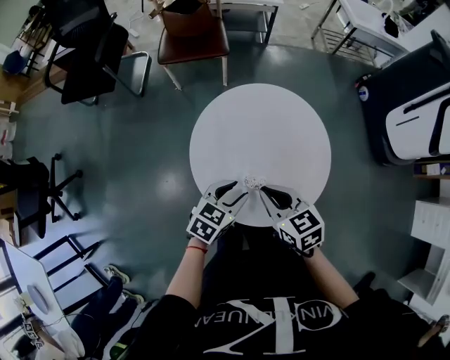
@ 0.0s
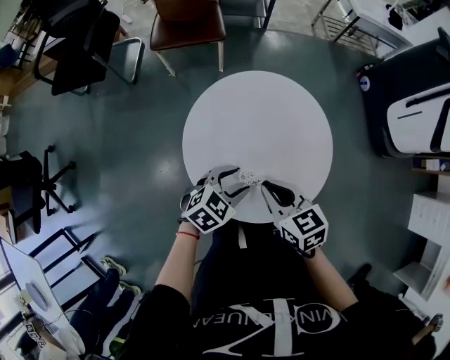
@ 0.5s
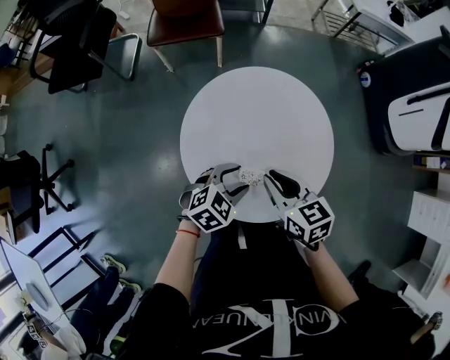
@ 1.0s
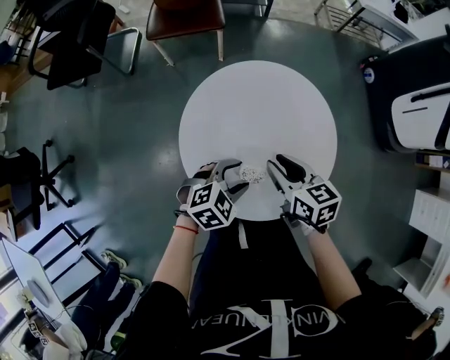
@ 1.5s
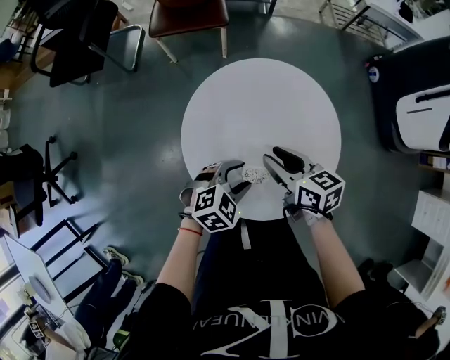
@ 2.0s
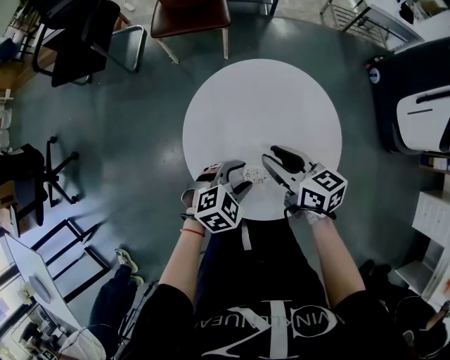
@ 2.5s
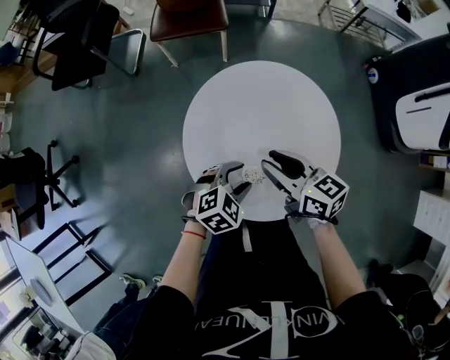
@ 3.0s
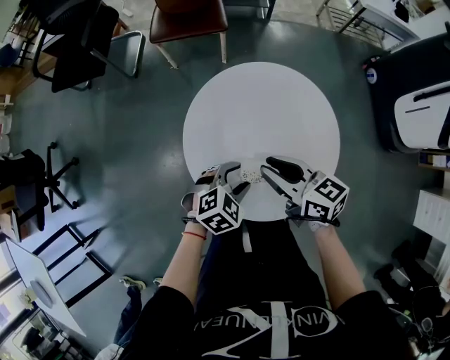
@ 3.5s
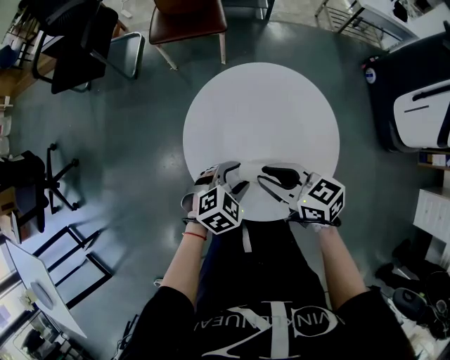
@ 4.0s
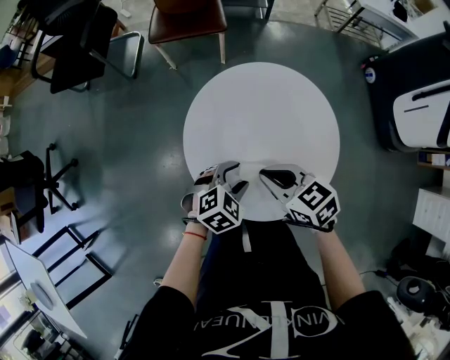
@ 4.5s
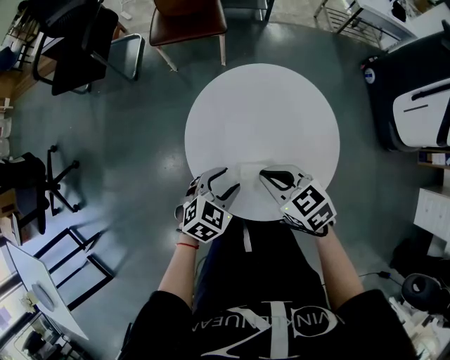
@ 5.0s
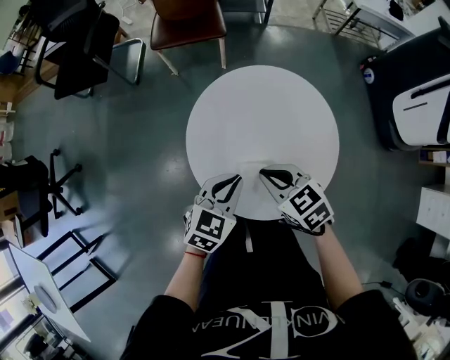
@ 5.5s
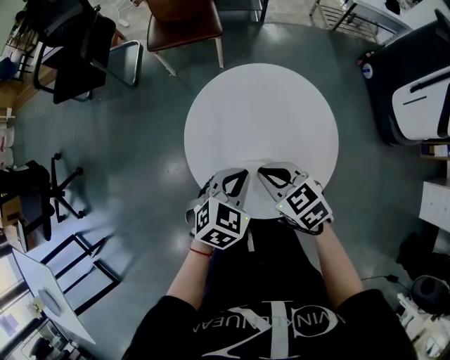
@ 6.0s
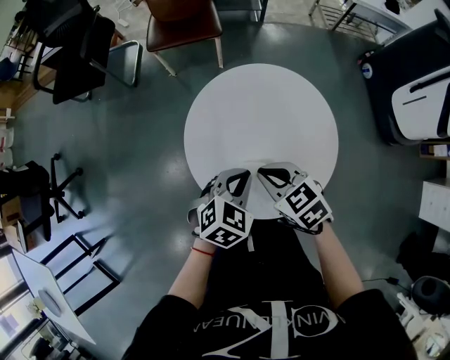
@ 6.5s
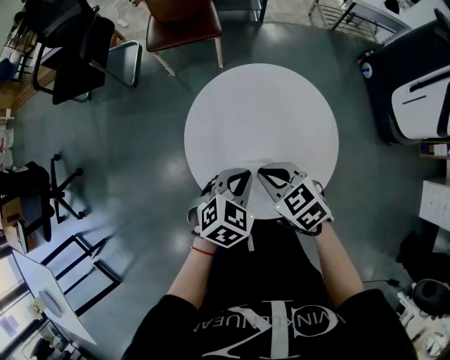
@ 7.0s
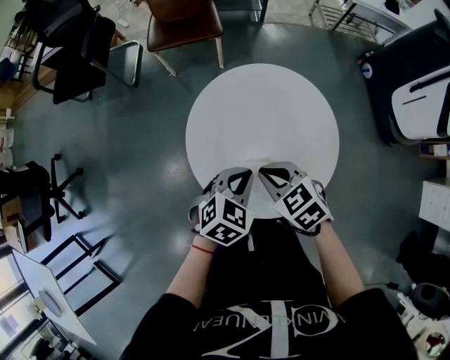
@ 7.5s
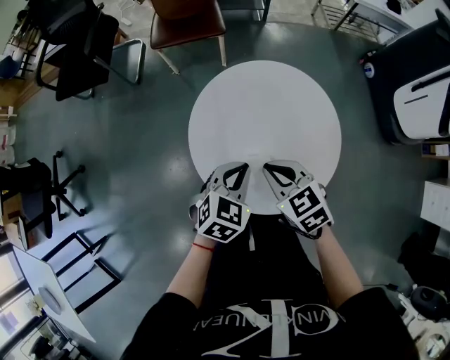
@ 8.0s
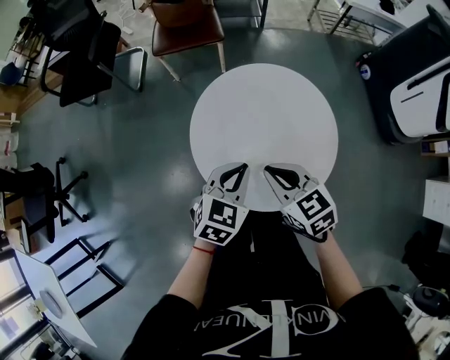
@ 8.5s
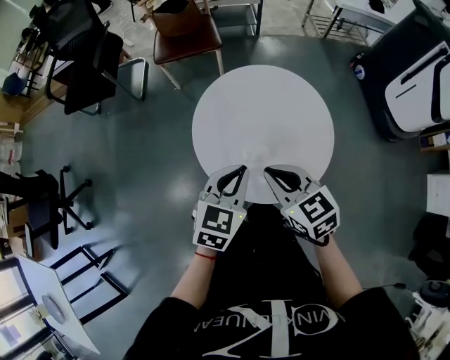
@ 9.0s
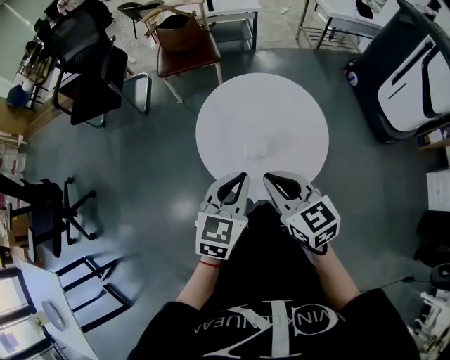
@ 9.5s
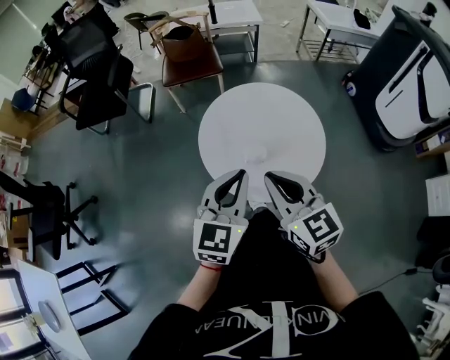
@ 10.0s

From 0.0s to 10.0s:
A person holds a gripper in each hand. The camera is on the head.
From 0.0s to 2.0s: The left gripper changes place by roughly 5 cm, and turns by some 30 degrees, while the right gripper goes approximately 10 cm forward, and opens up.
From 2.0s to 4.0s: The right gripper ends up about 5 cm from where it was.
From 4.0s to 6.0s: The left gripper shifts approximately 10 cm upward, and closes. Meanwhile the right gripper changes its angle by about 30 degrees, and closes.
From 6.0s to 8.0s: The grippers move only a little.
From 8.0s to 10.0s: Both grippers travel together upward and backward, roughly 20 cm. The right gripper changes its angle by some 30 degrees; the left gripper turns by roughly 30 degrees.

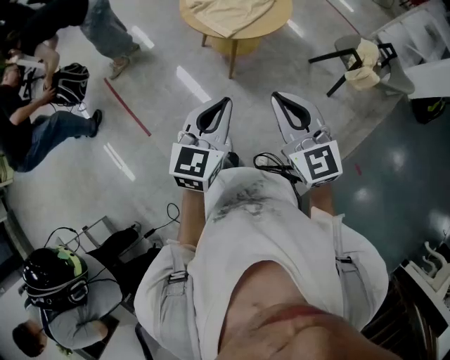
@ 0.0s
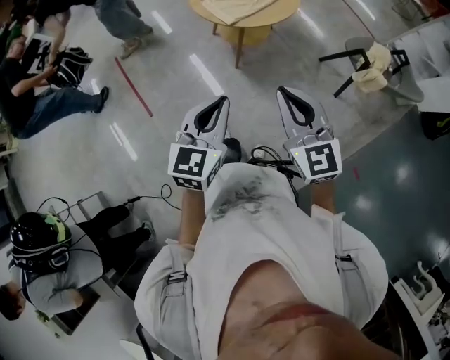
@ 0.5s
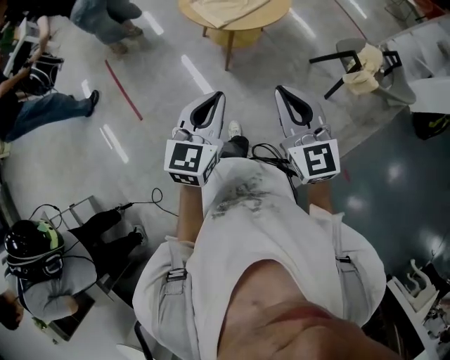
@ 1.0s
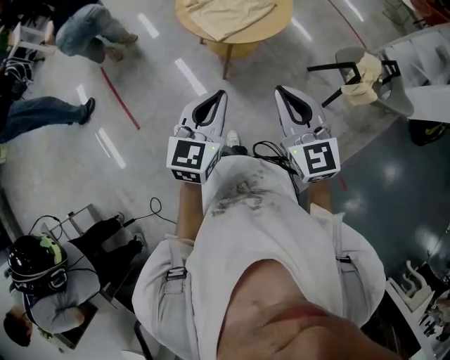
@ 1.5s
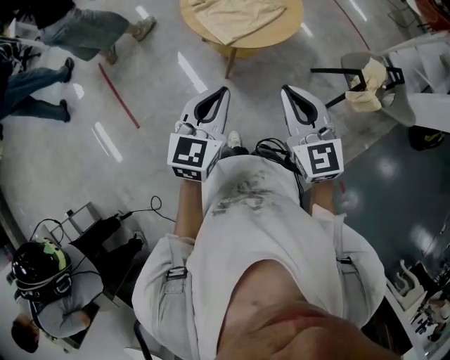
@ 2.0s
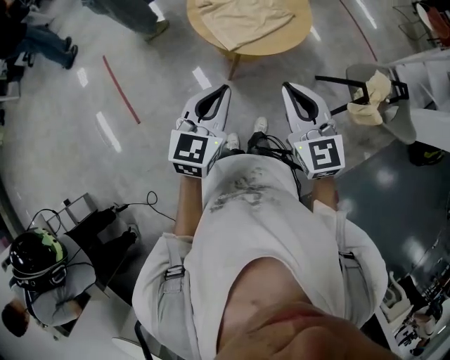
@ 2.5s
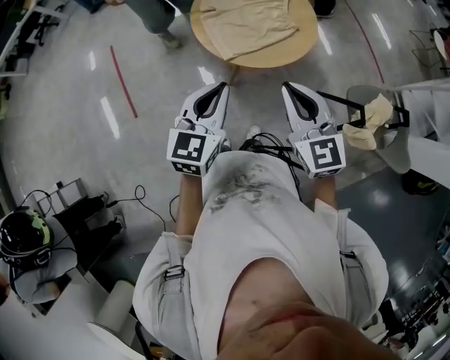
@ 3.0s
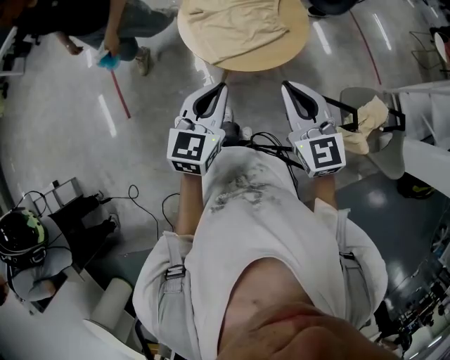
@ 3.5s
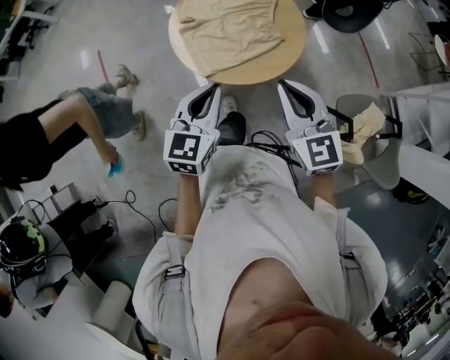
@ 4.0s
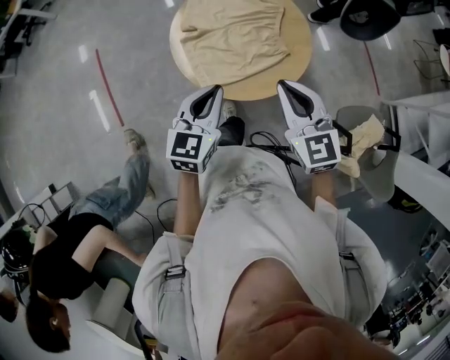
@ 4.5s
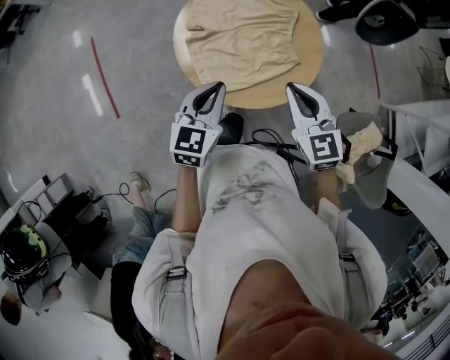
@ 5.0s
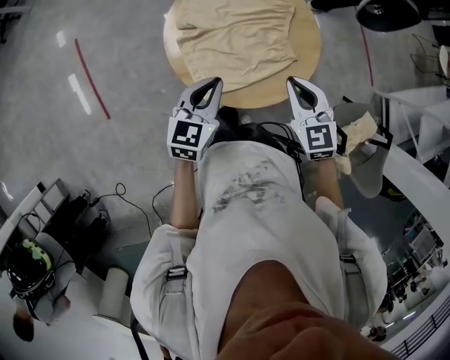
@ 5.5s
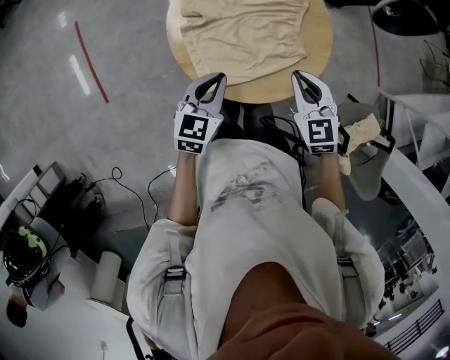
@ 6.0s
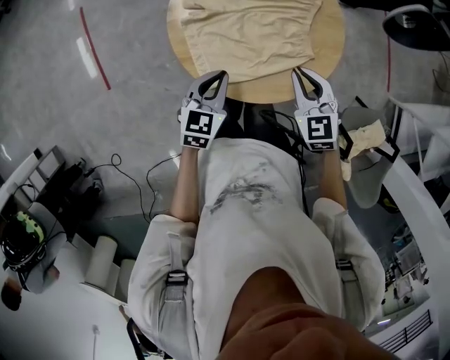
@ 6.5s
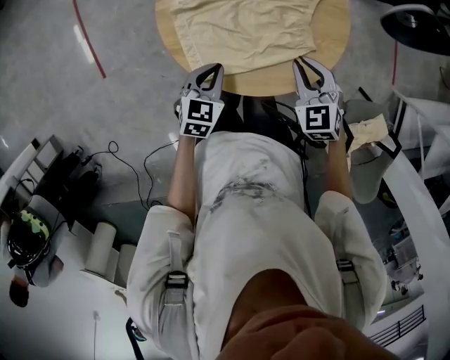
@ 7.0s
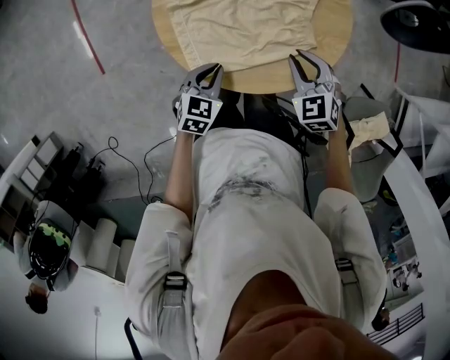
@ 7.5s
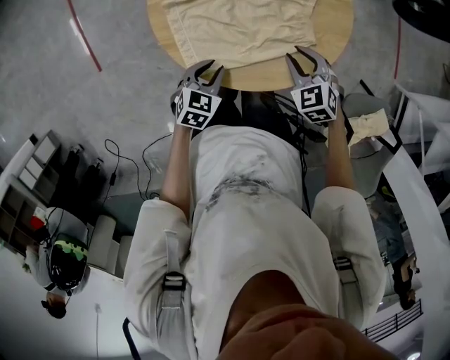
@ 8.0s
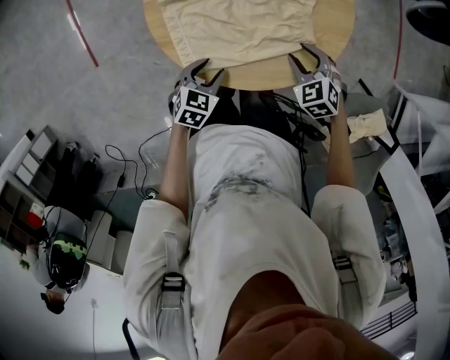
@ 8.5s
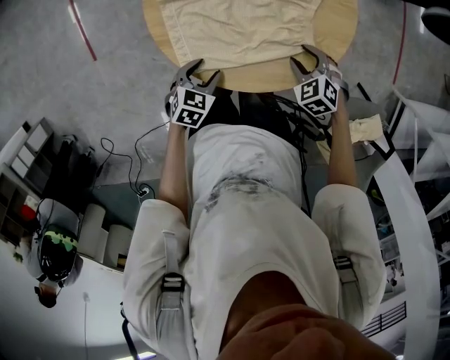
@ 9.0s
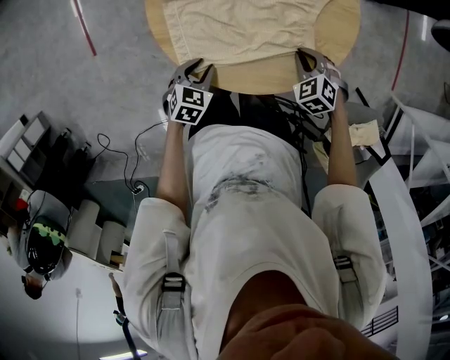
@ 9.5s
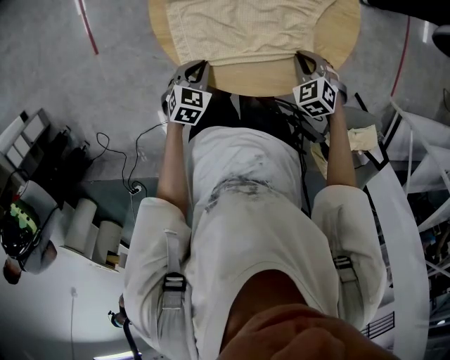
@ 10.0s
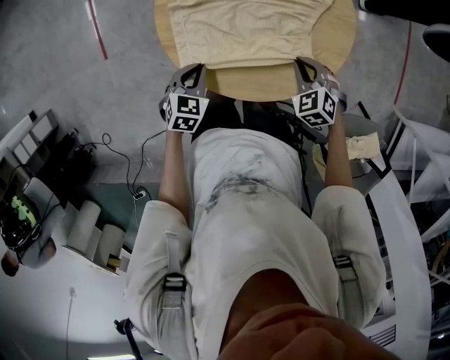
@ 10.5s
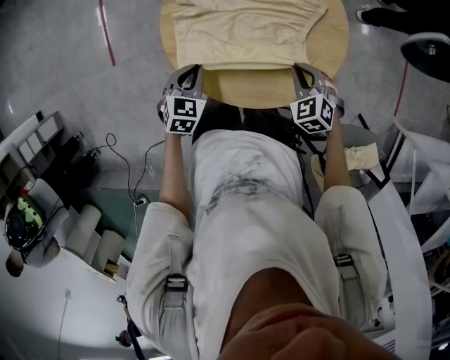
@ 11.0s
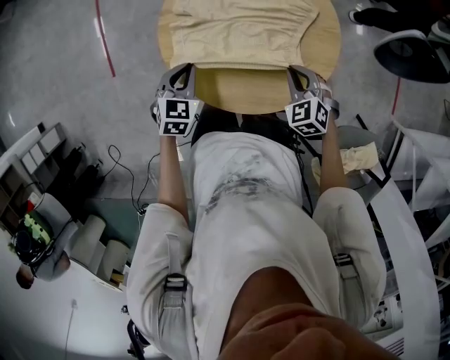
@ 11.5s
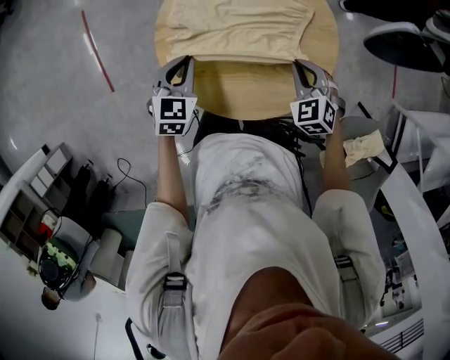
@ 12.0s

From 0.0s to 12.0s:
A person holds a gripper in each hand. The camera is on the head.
From 0.0s to 2.0s: The right gripper shifts some 15 cm forward and to the right; the left gripper heads forward, covering about 15 cm.
From 2.0s to 4.0s: Both grippers travel together forward and to the right, approximately 25 cm.
From 4.0s to 6.0s: The grippers both shift forward and downward by some 25 cm. The right gripper changes its angle by some 20 degrees.
From 6.0s to 8.0s: Both grippers travel together downward, roughly 20 cm. The left gripper changes its angle by approximately 20 degrees, and opens its fingers. Meanwhile the right gripper swivels roughly 20 degrees, and opens its fingers.
From 8.0s to 10.0s: The right gripper ends up about 5 cm from where it was, and closes up, while the left gripper opens and closes again.
From 10.0s to 12.0s: The left gripper heads forward and upward, covering roughly 20 cm. Meanwhile the right gripper shifts some 10 cm forward and upward.

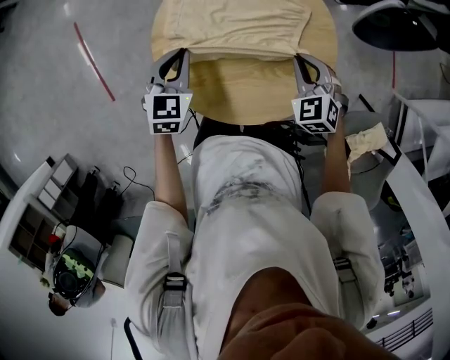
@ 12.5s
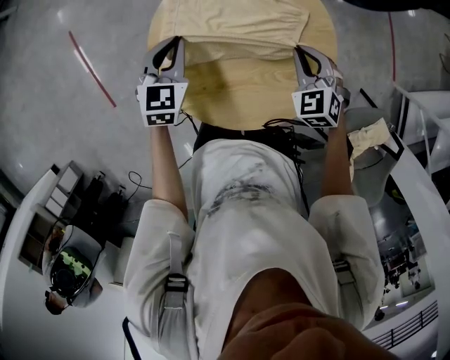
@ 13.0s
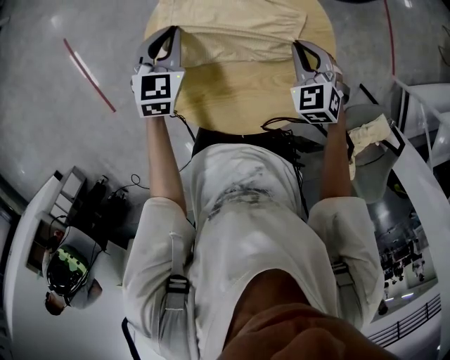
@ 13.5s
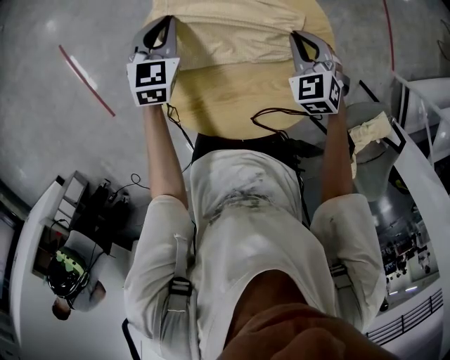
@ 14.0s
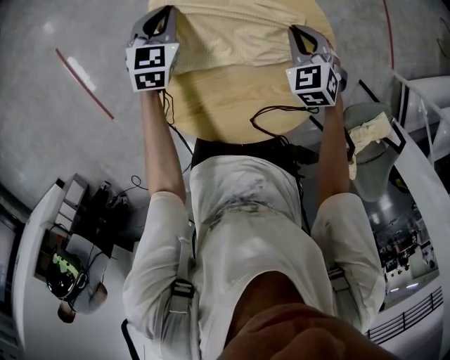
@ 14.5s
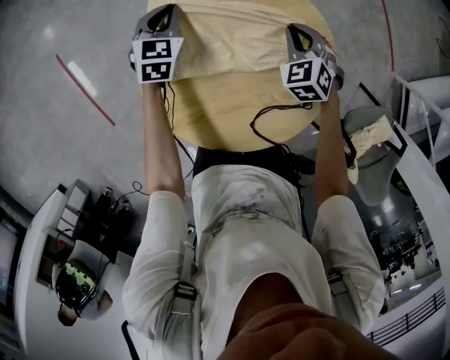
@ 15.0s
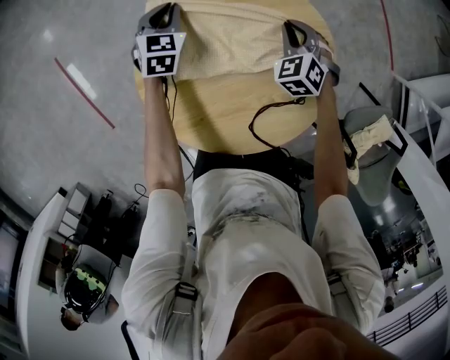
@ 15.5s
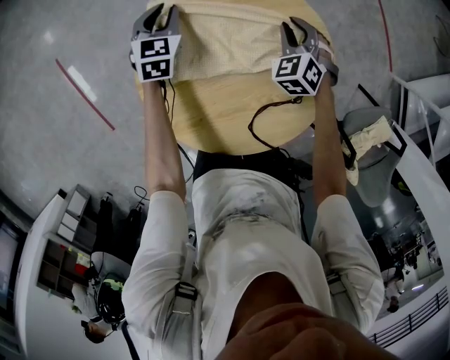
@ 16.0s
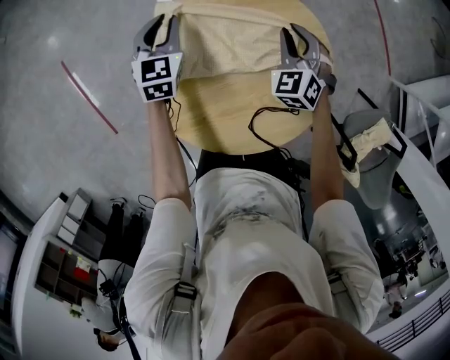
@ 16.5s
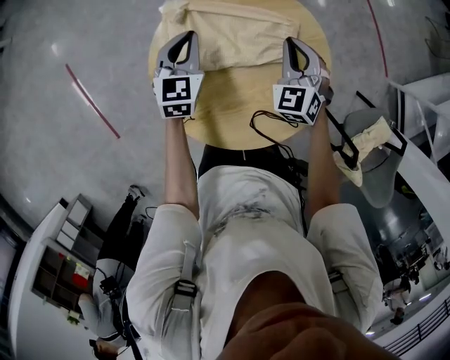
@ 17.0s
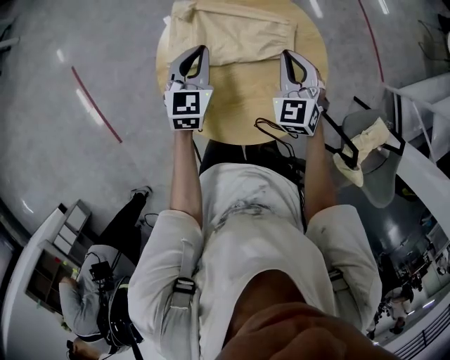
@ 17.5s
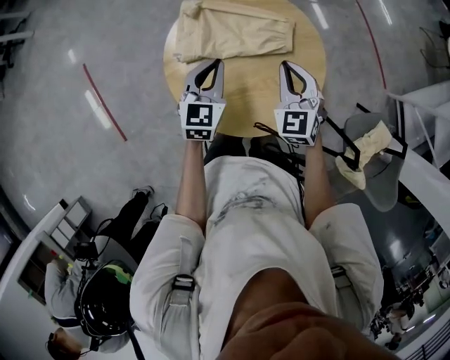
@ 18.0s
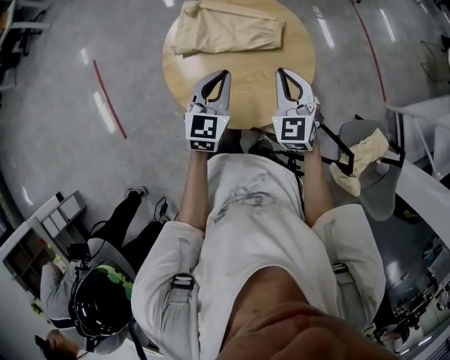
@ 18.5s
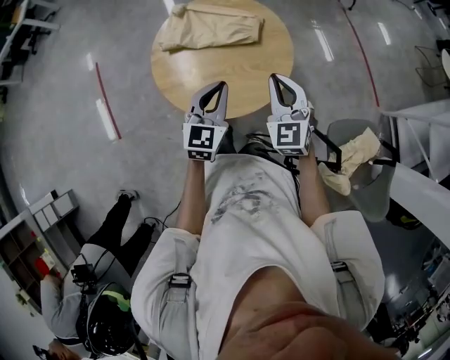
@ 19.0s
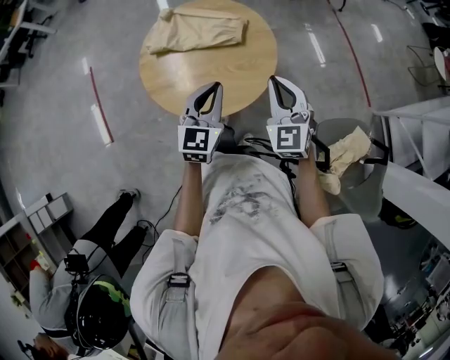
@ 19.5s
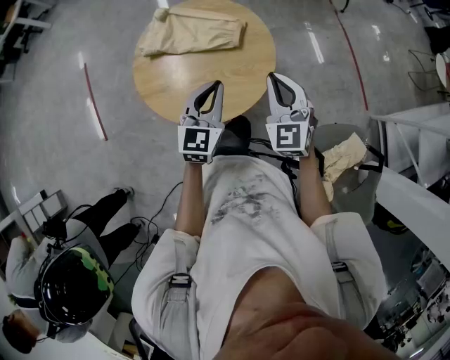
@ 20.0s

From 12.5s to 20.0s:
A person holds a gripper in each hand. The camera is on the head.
From 12.5s to 14.5s: The right gripper moves forward and downward, roughly 15 cm. The left gripper goes some 20 cm forward.
From 14.5s to 16.5s: The left gripper goes downward and returns, some 5 cm each way.
From 16.5s to 18.0s: Both grippers move backward and upward, roughly 25 cm.
From 18.0s to 20.0s: The right gripper is displaced to the right, backward and upward by about 25 cm; the left gripper goes roughly 25 cm to the right and backward.
